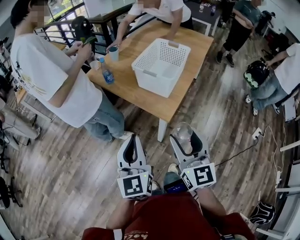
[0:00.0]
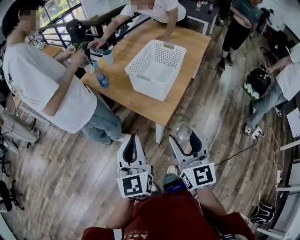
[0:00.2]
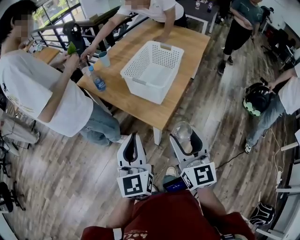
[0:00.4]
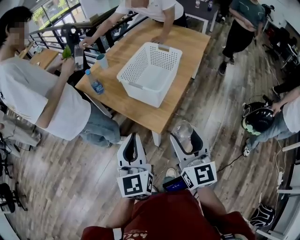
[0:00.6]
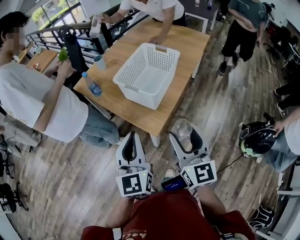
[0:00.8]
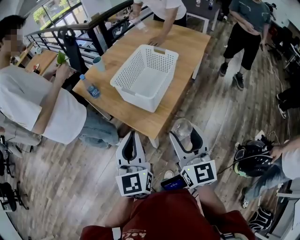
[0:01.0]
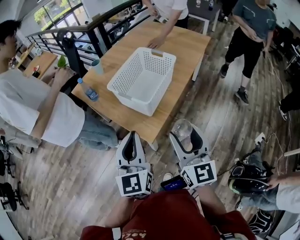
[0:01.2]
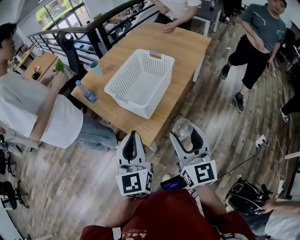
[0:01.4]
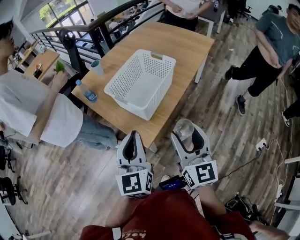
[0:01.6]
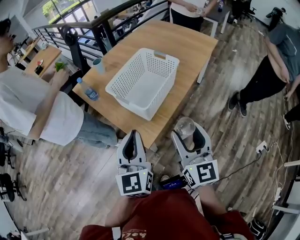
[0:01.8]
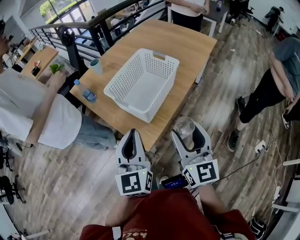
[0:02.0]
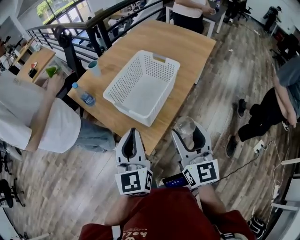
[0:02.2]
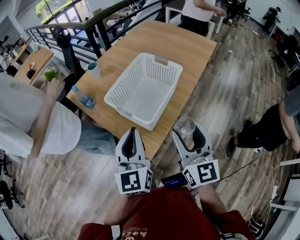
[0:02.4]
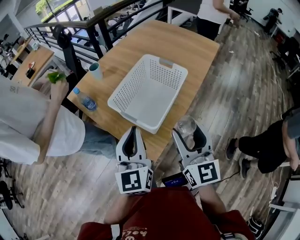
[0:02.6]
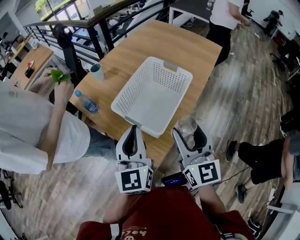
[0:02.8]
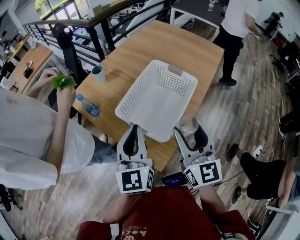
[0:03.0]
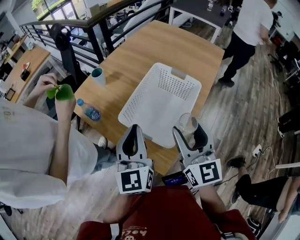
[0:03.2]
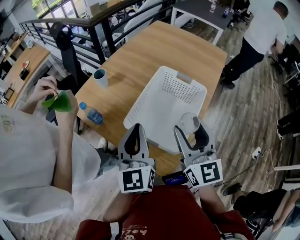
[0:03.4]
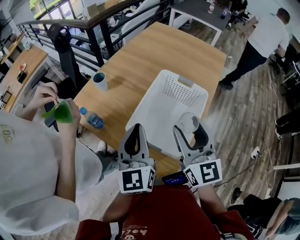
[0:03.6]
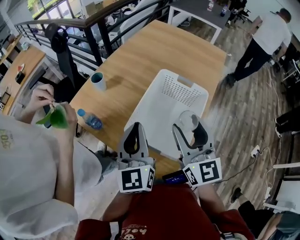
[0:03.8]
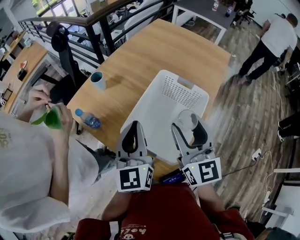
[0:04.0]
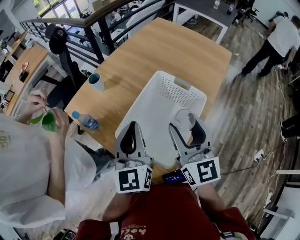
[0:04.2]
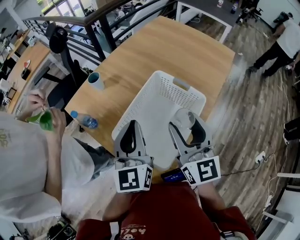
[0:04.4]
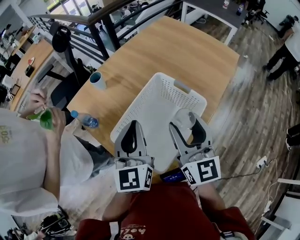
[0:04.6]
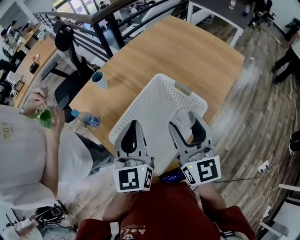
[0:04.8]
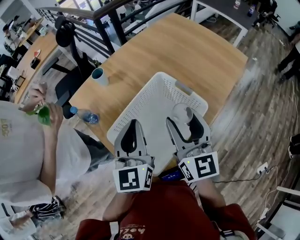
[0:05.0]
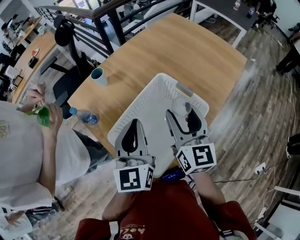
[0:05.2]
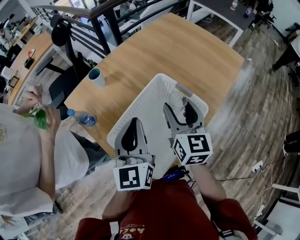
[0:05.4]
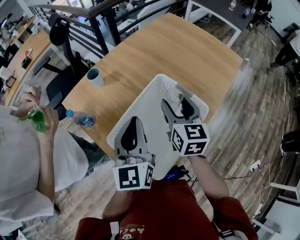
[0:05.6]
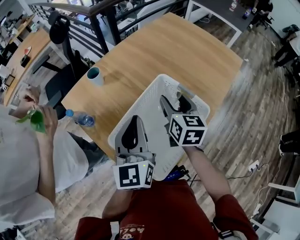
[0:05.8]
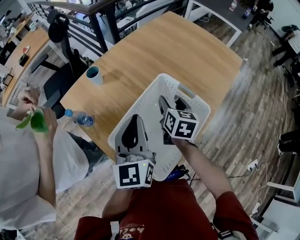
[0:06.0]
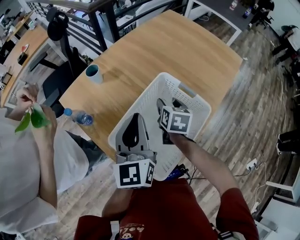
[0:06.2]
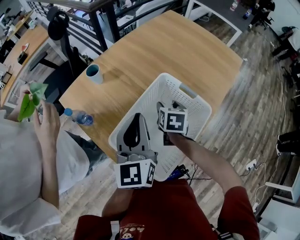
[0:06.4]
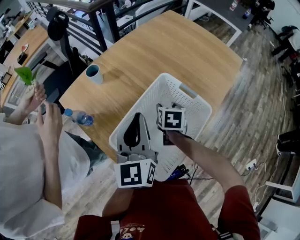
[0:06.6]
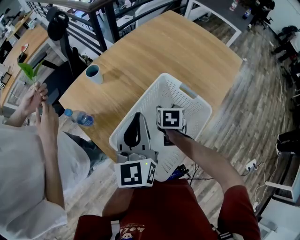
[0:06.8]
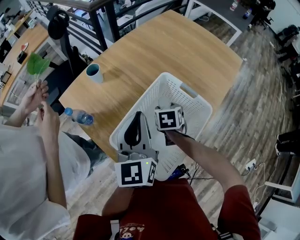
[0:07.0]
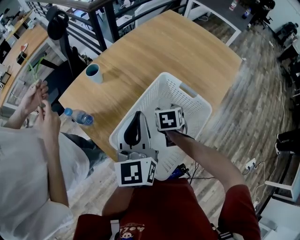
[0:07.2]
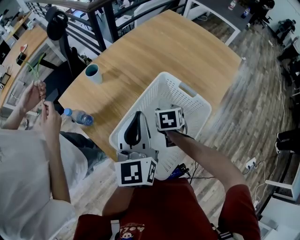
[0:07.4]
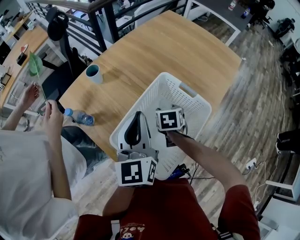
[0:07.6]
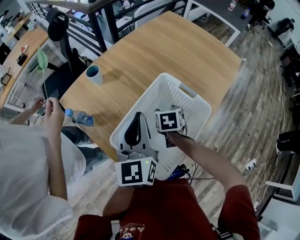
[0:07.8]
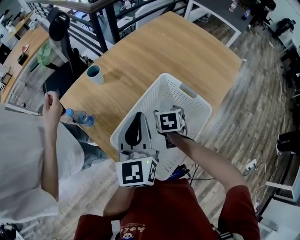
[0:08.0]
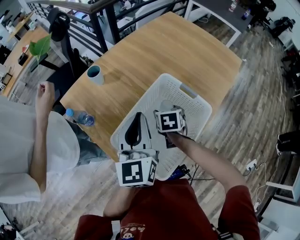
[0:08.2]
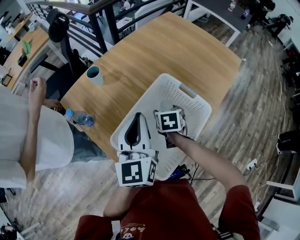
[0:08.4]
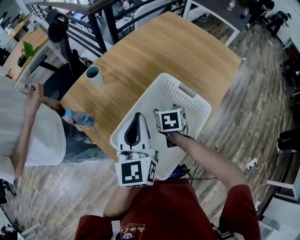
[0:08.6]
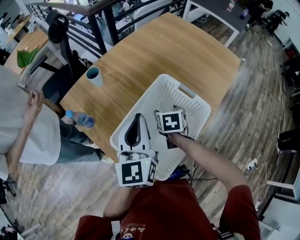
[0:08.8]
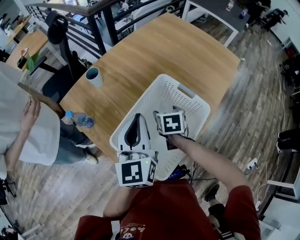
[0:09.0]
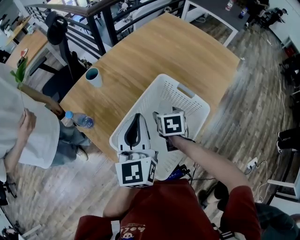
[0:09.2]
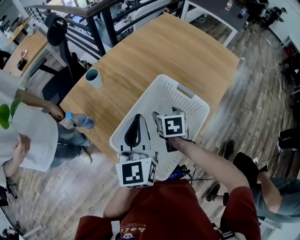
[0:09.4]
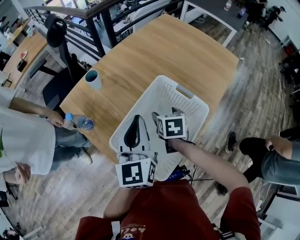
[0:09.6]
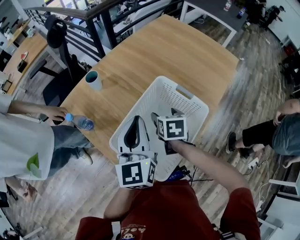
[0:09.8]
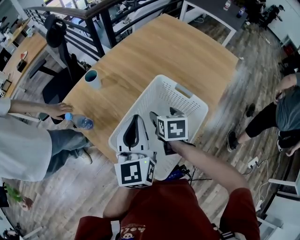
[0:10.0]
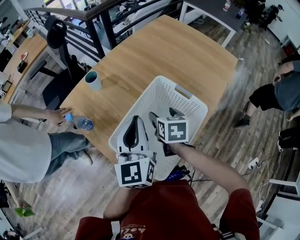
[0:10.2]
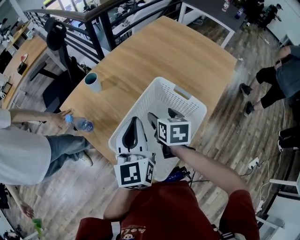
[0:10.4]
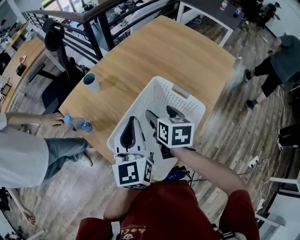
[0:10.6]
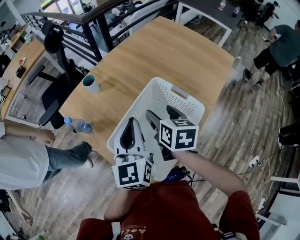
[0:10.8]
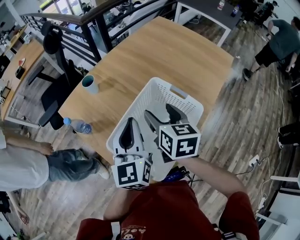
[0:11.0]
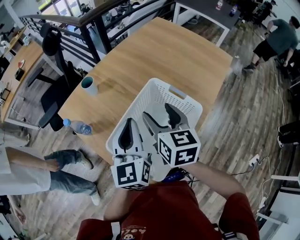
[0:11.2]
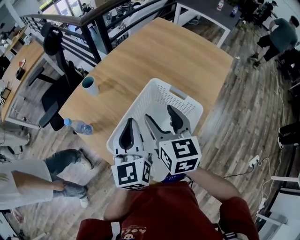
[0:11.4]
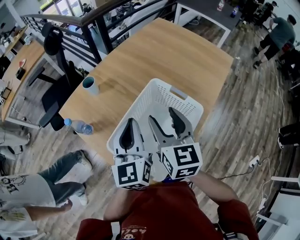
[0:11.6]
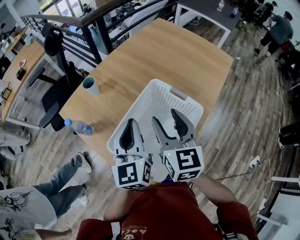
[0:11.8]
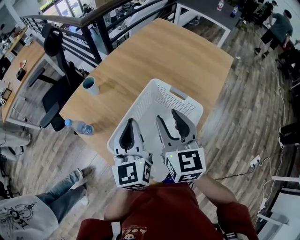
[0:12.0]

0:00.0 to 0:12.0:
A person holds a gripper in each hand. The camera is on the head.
0:00.0 to 0:01.6: Both grippers travel together to the right and forward, about 25 cm.
0:01.6 to 0:03.0: The left gripper goes approximately 15 cm forward. Meanwhile the right gripper is displaced forward and to the left by roughly 15 cm.
0:03.0 to 0:04.4: Both grippers travel together forward, roughly 15 cm.
0:04.4 to 0:06.0: The right gripper is displaced forward and downward by about 20 cm, and tips its fingers downward by about 30 degrees. Meanwhile the left gripper moves roughly 5 cm.
0:06.0 to 0:07.6: The right gripper goes approximately 10 cm downward, and rotates approximately 30 degrees.
0:07.6 to 0:09.0: The grippers stay close to where they were, moving slightly.
0:09.0 to 0:10.4: The right gripper shifts some 5 cm upward.
0:10.4 to 0:12.0: The right gripper goes approximately 15 cm upward, changes its angle by approximately 30 degrees, and closes up.

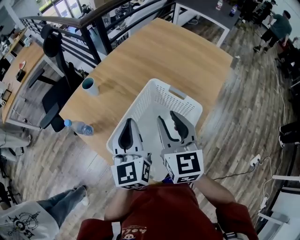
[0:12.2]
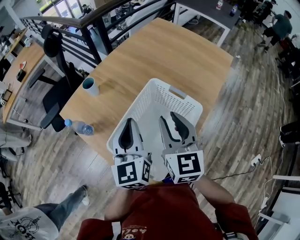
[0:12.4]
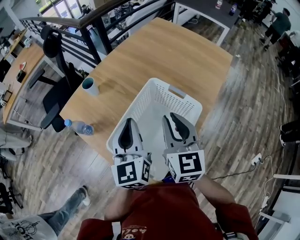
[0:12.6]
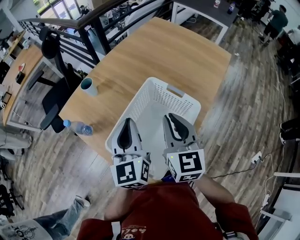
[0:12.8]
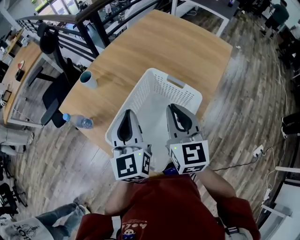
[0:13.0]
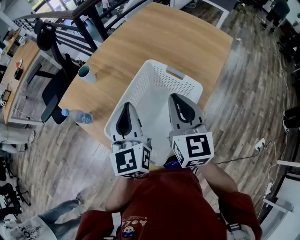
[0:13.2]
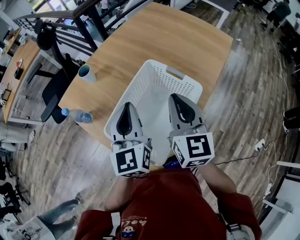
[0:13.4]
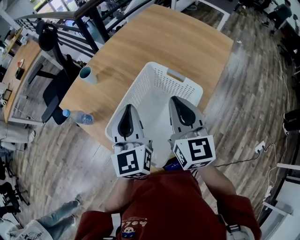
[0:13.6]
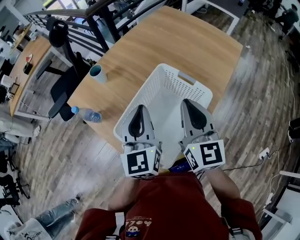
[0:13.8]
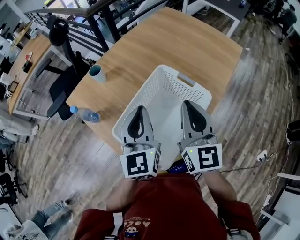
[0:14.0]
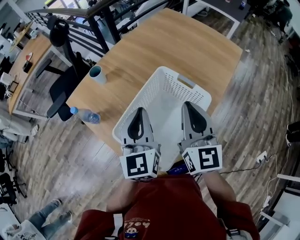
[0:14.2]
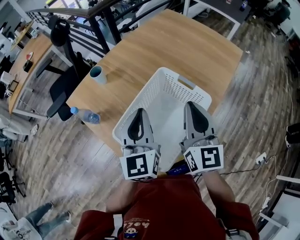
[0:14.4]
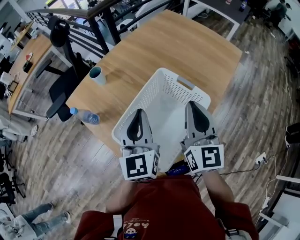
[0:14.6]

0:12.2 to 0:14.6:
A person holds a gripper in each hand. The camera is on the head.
0:12.2 to 0:13.4: The right gripper closes.
0:13.4 to 0:14.6: There are only small adjustments of the grippers.

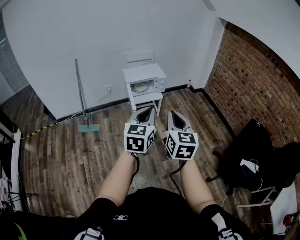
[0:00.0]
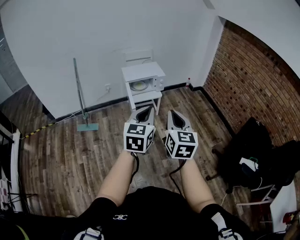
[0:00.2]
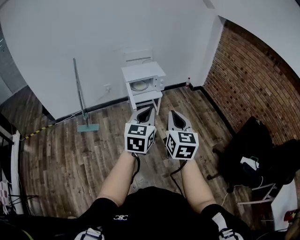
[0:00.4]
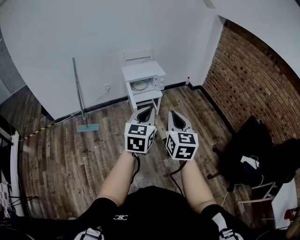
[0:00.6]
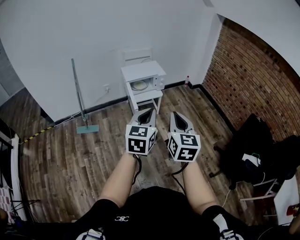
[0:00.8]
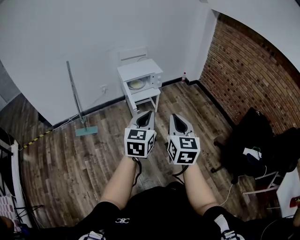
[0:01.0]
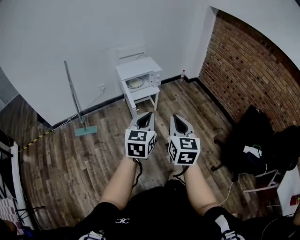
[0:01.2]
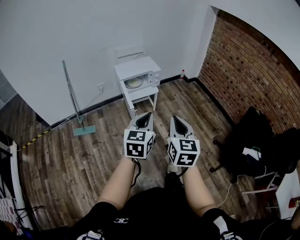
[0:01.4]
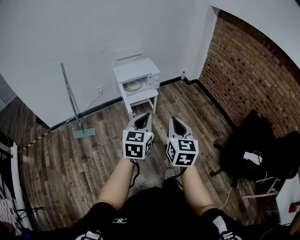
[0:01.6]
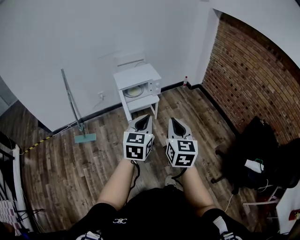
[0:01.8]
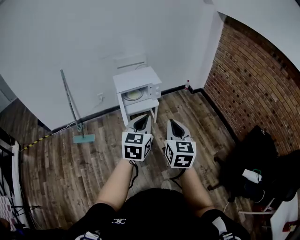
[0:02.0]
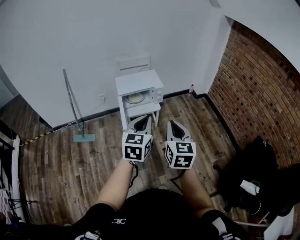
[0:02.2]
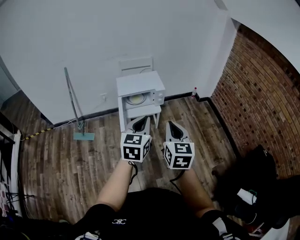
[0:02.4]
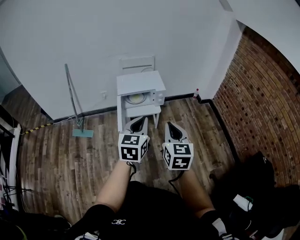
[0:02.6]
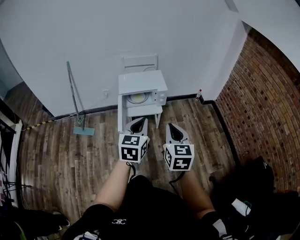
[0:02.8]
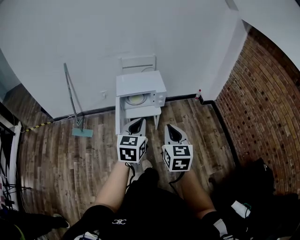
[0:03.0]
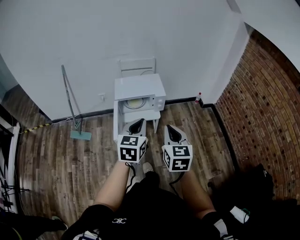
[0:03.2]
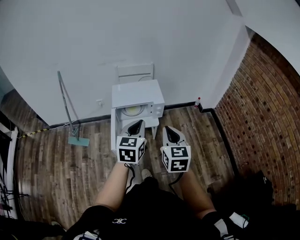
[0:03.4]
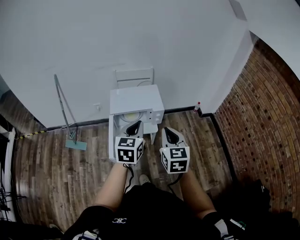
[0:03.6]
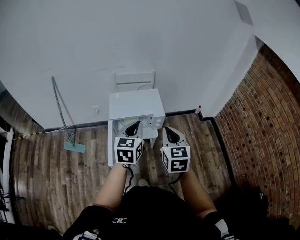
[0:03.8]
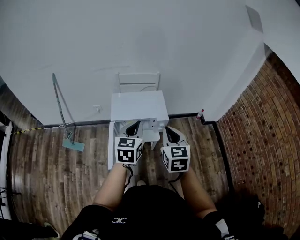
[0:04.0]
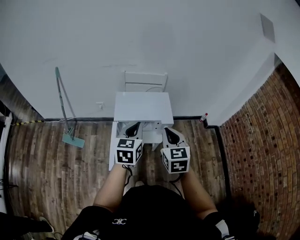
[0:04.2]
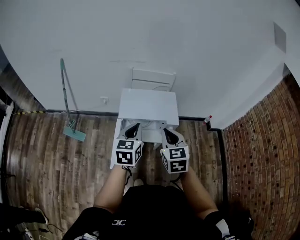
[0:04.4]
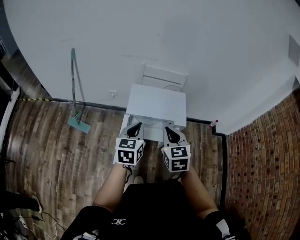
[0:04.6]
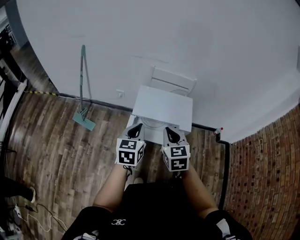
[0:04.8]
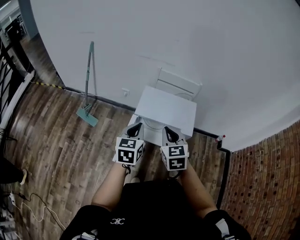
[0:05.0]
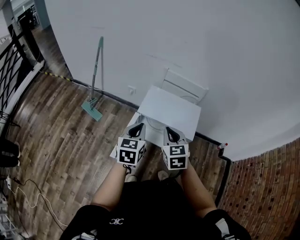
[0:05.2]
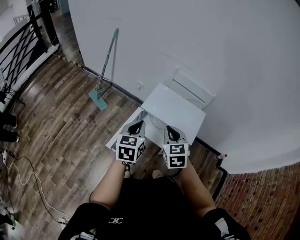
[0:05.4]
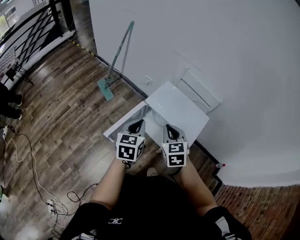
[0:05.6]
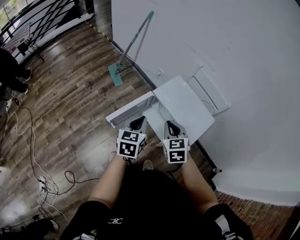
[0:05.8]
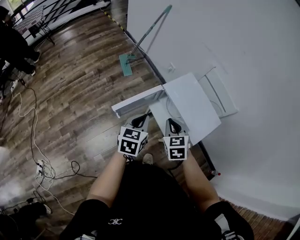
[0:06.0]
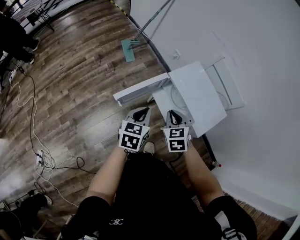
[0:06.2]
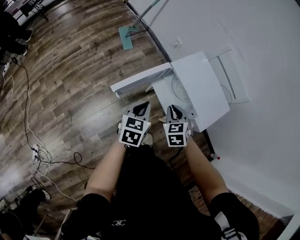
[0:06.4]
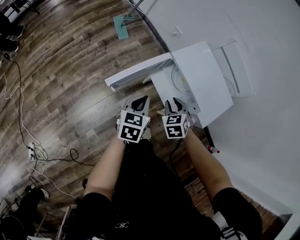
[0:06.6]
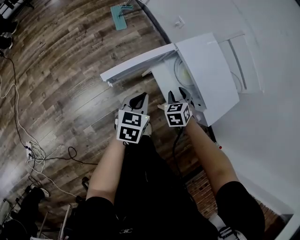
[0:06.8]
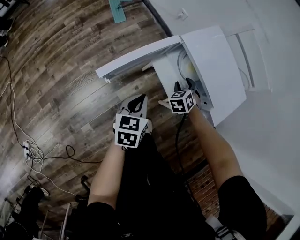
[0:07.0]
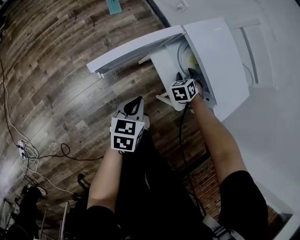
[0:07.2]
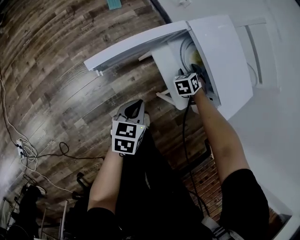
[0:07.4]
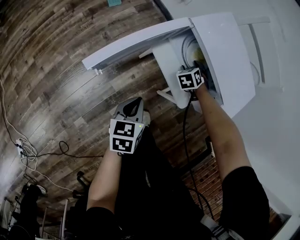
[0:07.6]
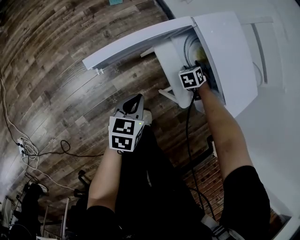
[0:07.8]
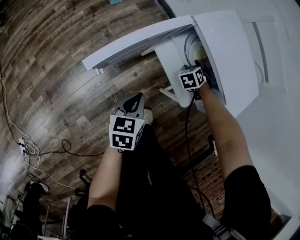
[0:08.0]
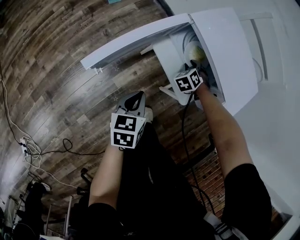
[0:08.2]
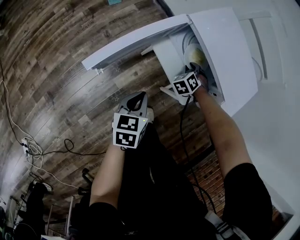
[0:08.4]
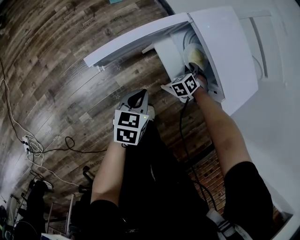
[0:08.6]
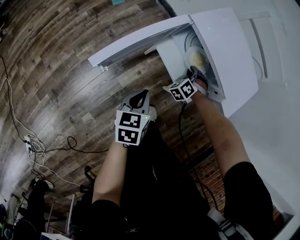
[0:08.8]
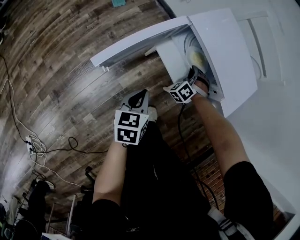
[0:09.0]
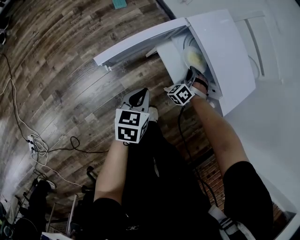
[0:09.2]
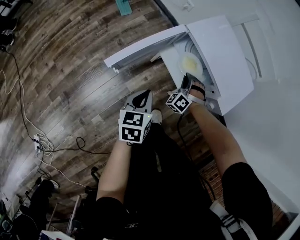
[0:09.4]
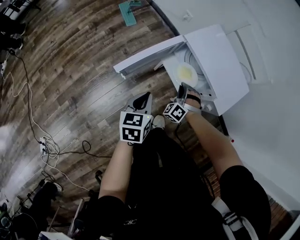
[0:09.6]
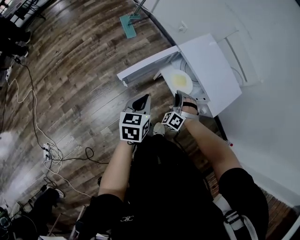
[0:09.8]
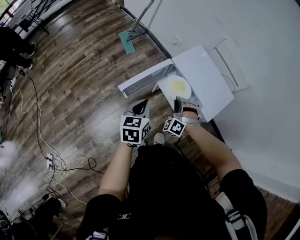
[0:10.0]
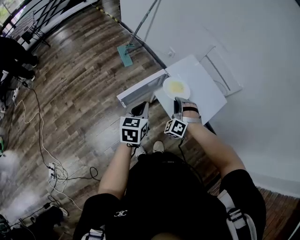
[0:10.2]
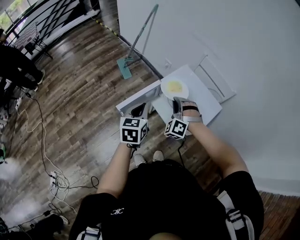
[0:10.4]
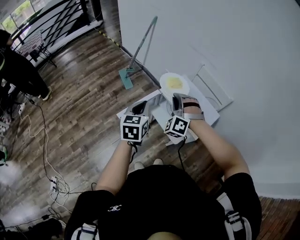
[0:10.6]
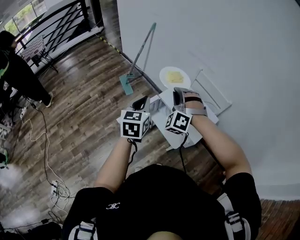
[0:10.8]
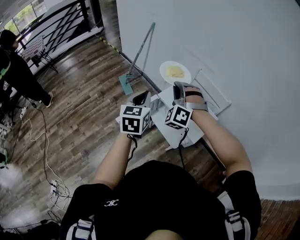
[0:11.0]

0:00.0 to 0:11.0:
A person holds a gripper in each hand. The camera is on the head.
0:00.0 to 0:01.6: The left gripper is displaced forward and downward by some 10 cm; the right gripper moves downward, approximately 5 cm.
0:01.6 to 0:03.2: The grippers both shift forward by about 30 cm.
0:03.2 to 0:04.8: Both grippers move forward and to the left, some 30 cm. The right gripper changes its angle by approximately 30 degrees; the left gripper changes its angle by approximately 20 degrees.
0:04.8 to 0:06.2: The two grippers go some 15 cm downward. The right gripper rotates some 50 degrees; the left gripper changes its angle by some 40 degrees.
0:06.2 to 0:07.8: Both grippers move downward, roughly 30 cm. The right gripper rotates about 40 degrees, and opens its fingers.
0:07.8 to 0:09.4: The right gripper travels upward and backward by approximately 15 cm, rotates some 40 degrees, and closes. Meanwhile the left gripper heads upward, covering roughly 10 cm.
0:09.4 to 0:11.0: The two grippers go roughly 40 cm upward. The right gripper swivels about 30 degrees, while the left gripper turns by some 30 degrees.
